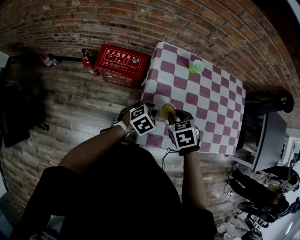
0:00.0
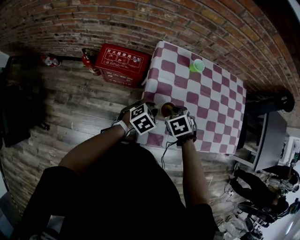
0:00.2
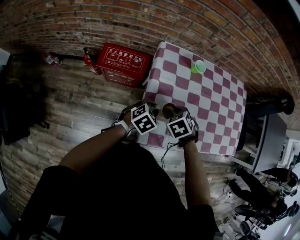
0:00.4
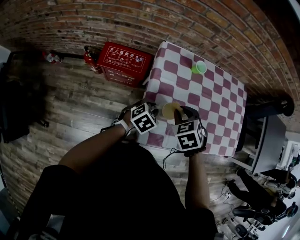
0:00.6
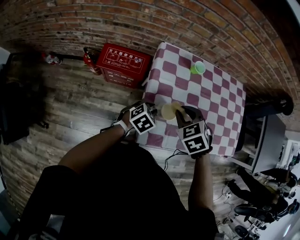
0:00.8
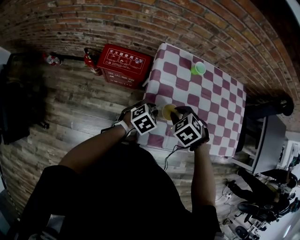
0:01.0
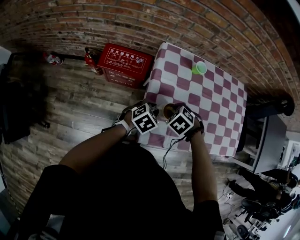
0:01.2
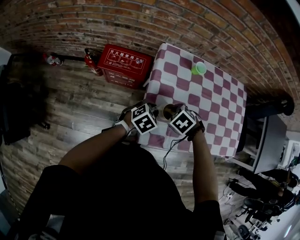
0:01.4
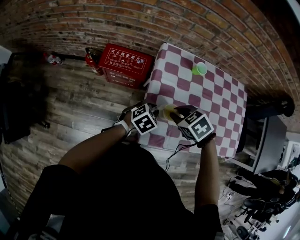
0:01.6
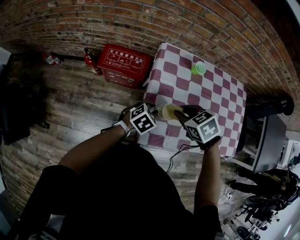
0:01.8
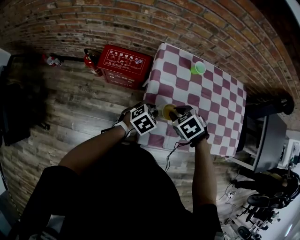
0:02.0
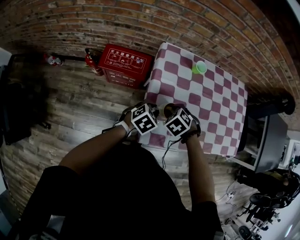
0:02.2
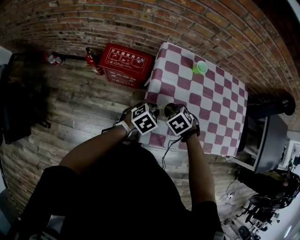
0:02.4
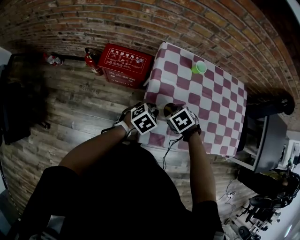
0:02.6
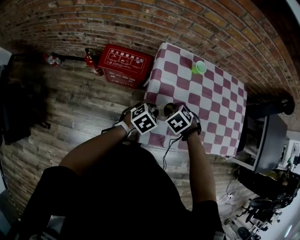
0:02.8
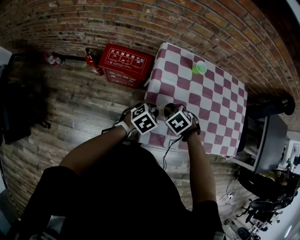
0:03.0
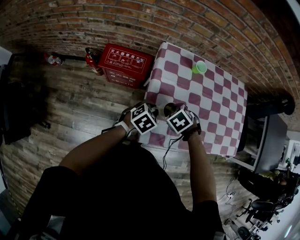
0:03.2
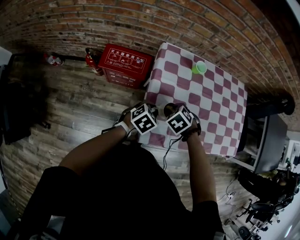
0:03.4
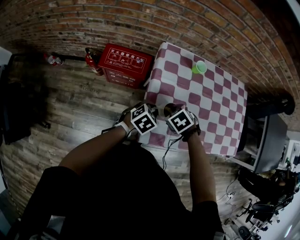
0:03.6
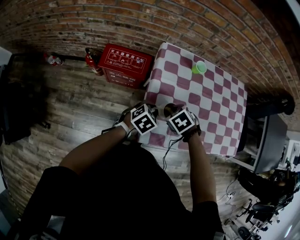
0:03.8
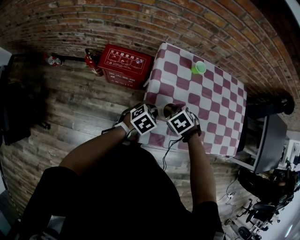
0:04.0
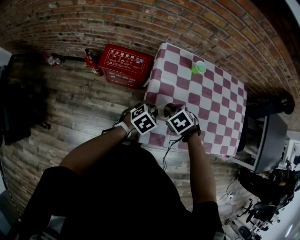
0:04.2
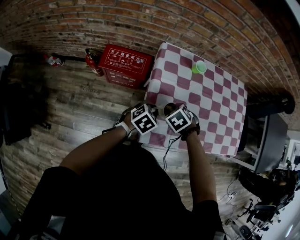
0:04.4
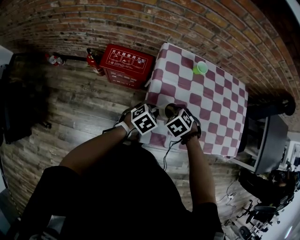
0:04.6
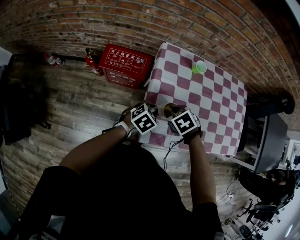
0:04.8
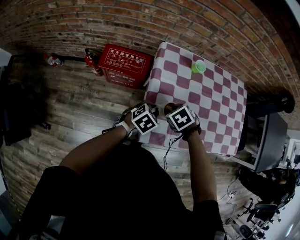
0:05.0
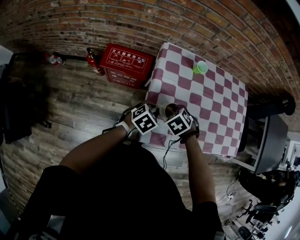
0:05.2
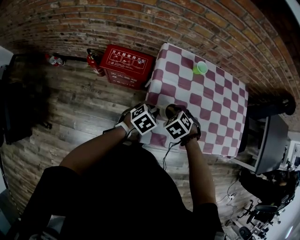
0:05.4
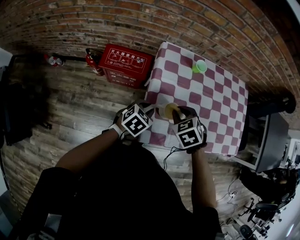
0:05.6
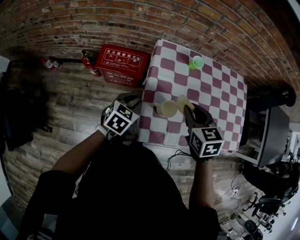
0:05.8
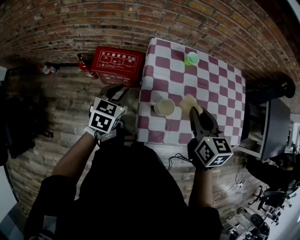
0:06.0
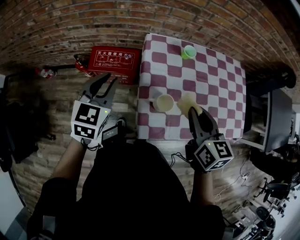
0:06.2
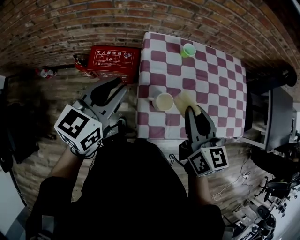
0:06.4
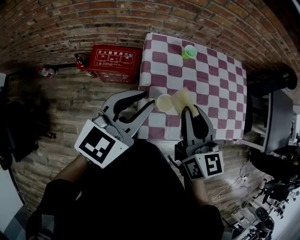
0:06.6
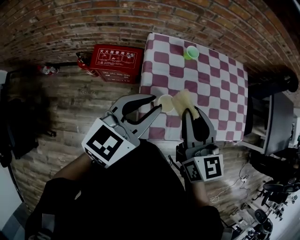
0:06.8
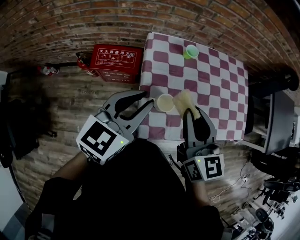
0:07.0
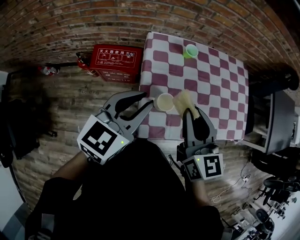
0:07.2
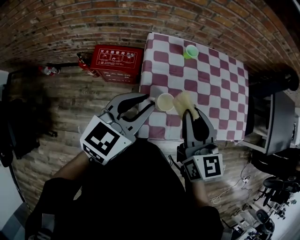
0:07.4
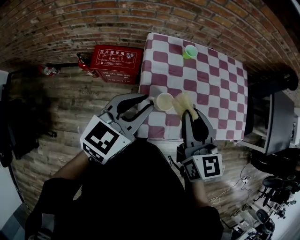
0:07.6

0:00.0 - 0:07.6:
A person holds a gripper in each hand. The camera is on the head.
0:00.0 - 0:01.6: The right gripper swings up and down, some 10 cm each way, with 3 reversals, and changes its angle by approximately 20 degrees.
0:01.6 - 0:03.0: The right gripper is displaced downward by about 10 cm.
0:03.0 - 0:04.6: The grippers move only a little.
0:04.6 - 0:06.0: The right gripper is displaced upward by about 20 cm, and angles its fingers upward, by about 40 degrees, while the left gripper ends up approximately 15 cm from where it was, and changes its angle by approximately 30 degrees.
0:06.0 - 0:07.6: The left gripper shifts about 20 cm upward and to the right, and changes its angle by about 20 degrees. Meanwhile the right gripper is displaced upward by about 5 cm.

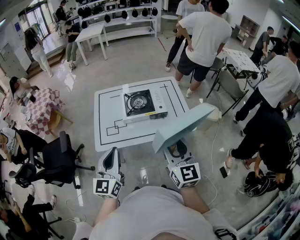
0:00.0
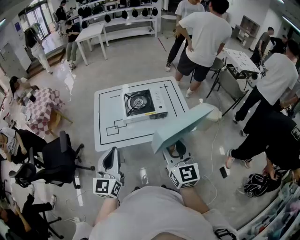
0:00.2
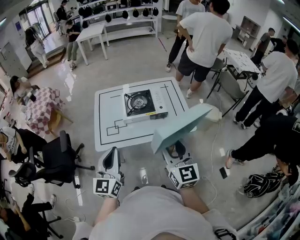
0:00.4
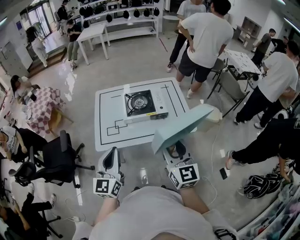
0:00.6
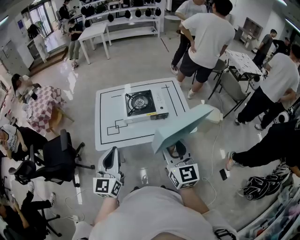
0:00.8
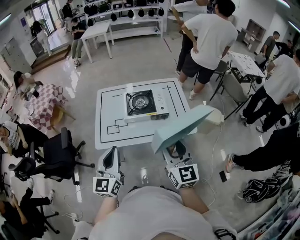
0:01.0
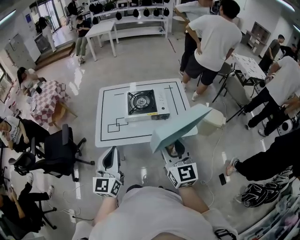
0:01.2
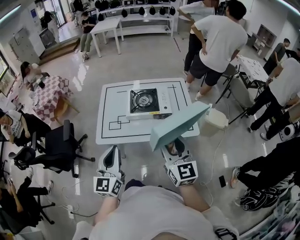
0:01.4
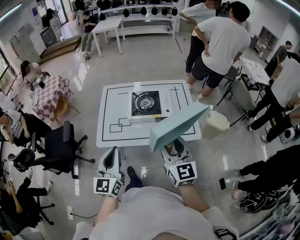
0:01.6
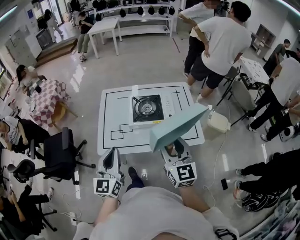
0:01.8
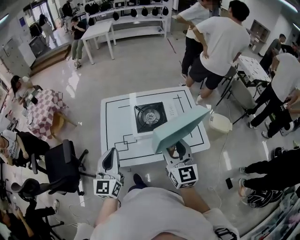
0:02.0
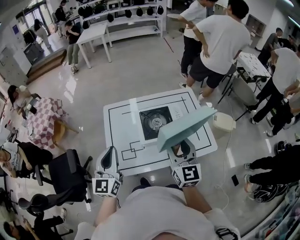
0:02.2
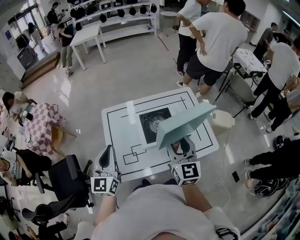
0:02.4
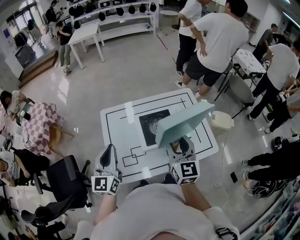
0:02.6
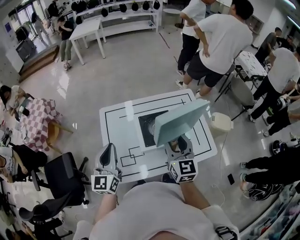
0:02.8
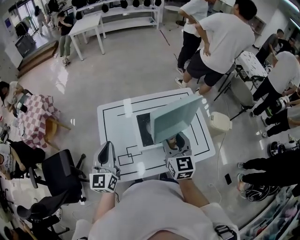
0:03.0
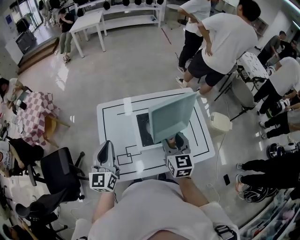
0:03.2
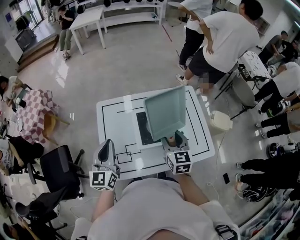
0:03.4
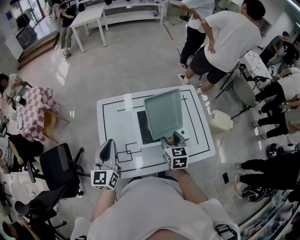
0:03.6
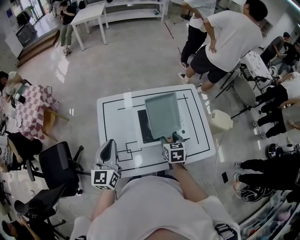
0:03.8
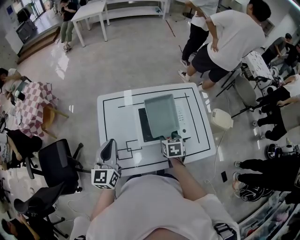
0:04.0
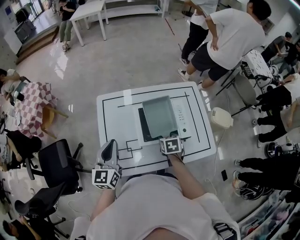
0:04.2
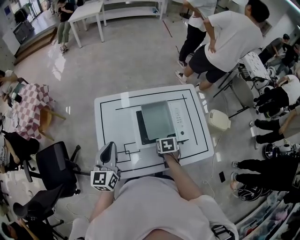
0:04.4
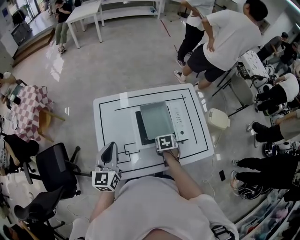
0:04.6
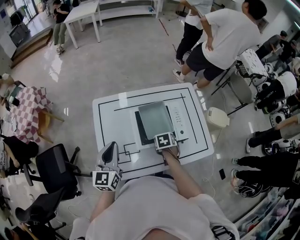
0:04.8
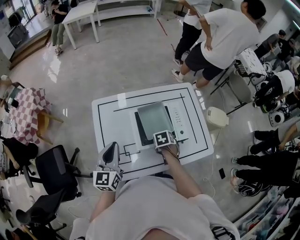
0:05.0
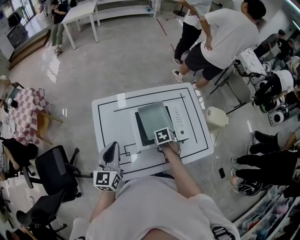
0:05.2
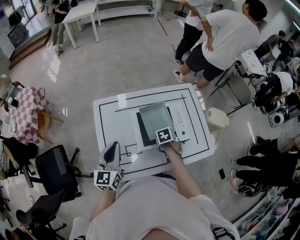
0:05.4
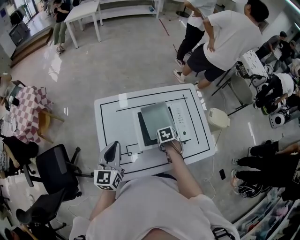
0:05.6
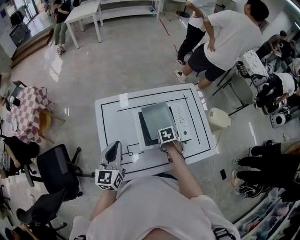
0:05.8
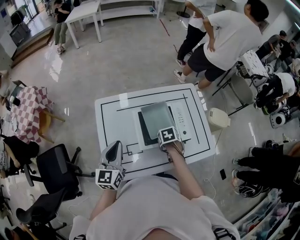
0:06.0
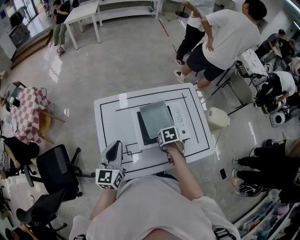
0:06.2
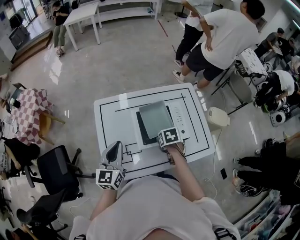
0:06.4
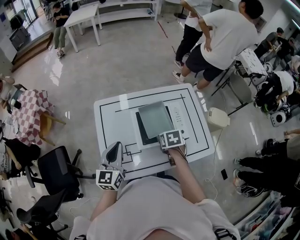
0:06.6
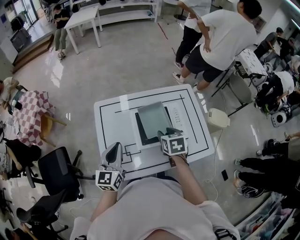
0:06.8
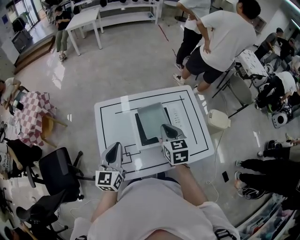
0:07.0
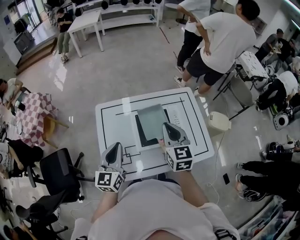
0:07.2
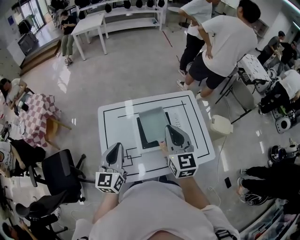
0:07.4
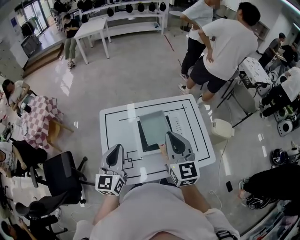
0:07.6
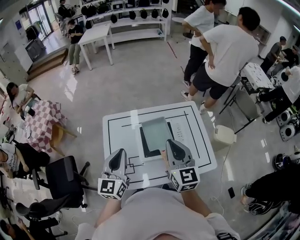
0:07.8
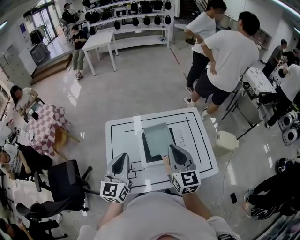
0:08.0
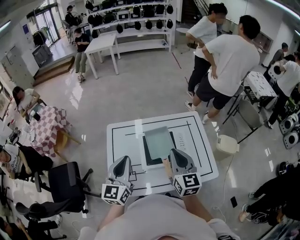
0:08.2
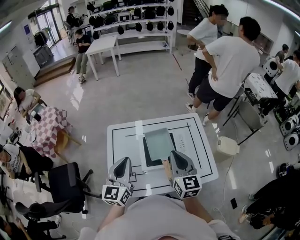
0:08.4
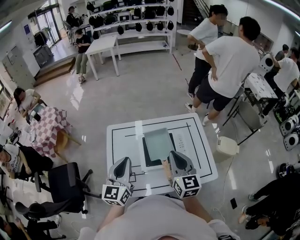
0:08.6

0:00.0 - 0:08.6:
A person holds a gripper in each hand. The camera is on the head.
0:00.0 - 0:01.4: The grippers make only small movements.
0:01.4 - 0:02.8: The right gripper moves forward, roughly 25 cm. The left gripper goes some 35 cm forward and to the left.
0:02.8 - 0:04.4: The right gripper shifts about 25 cm downward, and points its fingers approximately 60 degrees further downward; the left gripper goes approximately 5 cm downward.
0:04.4 - 0:05.8: The grippers move only a little.
0:05.8 - 0:07.2: The left gripper ends up about 5 cm from where it was; the right gripper heads upward, covering roughly 25 cm, points its fingers roughly 60 degrees further upward, and closes up.
0:07.2 - 0:08.6: The left gripper heads upward, covering roughly 5 cm, while the right gripper ends up some 5 cm from where it was.

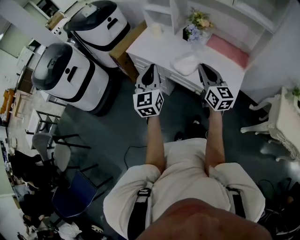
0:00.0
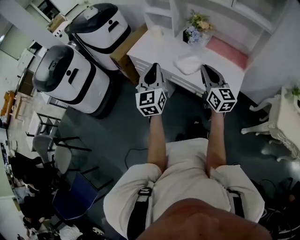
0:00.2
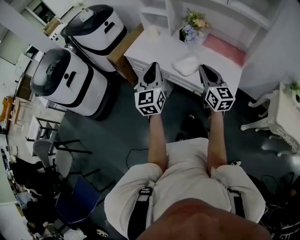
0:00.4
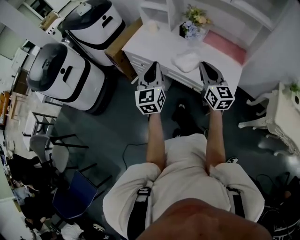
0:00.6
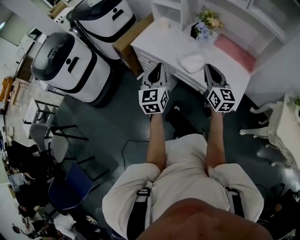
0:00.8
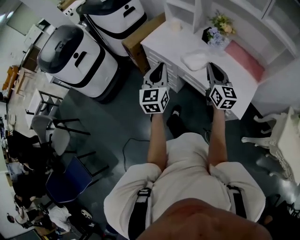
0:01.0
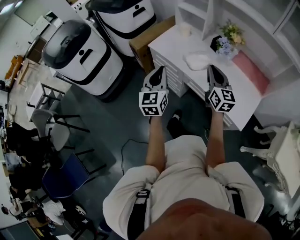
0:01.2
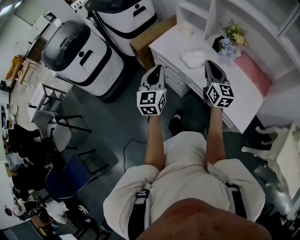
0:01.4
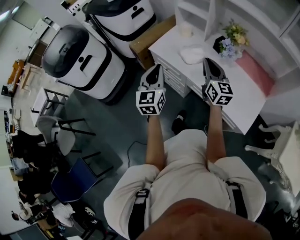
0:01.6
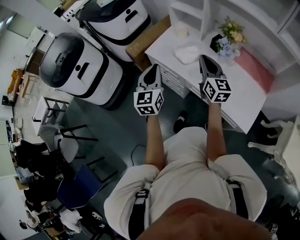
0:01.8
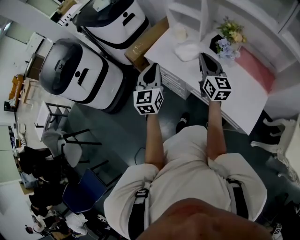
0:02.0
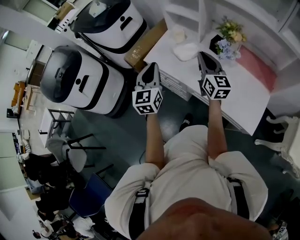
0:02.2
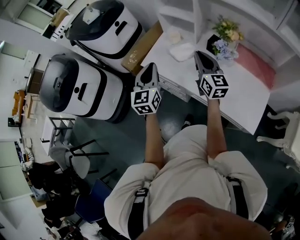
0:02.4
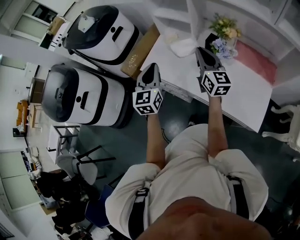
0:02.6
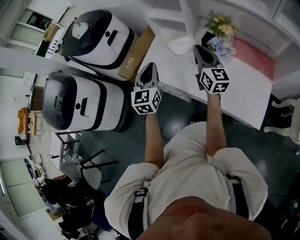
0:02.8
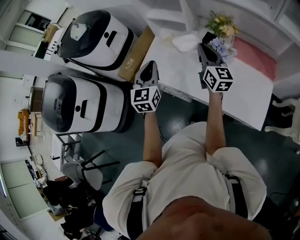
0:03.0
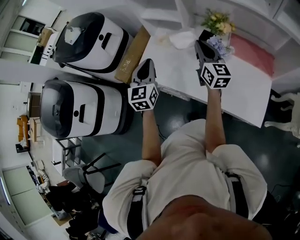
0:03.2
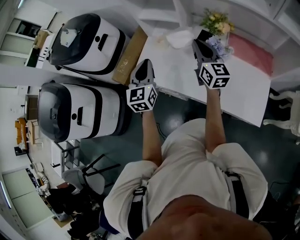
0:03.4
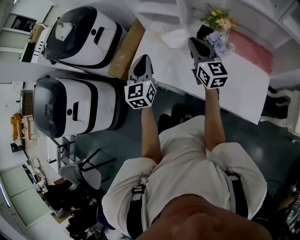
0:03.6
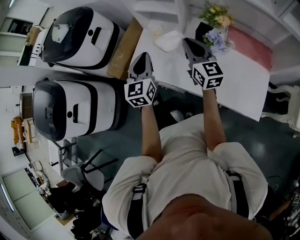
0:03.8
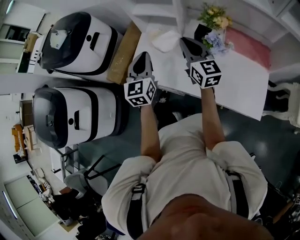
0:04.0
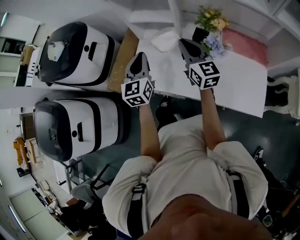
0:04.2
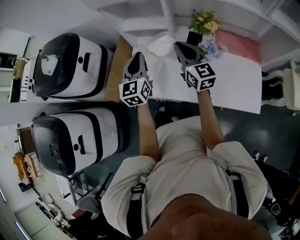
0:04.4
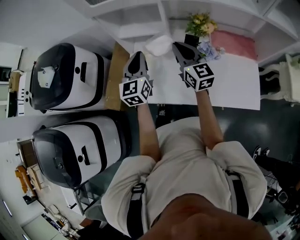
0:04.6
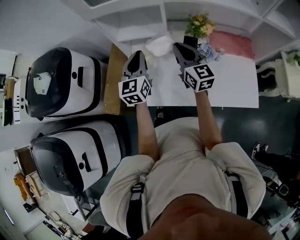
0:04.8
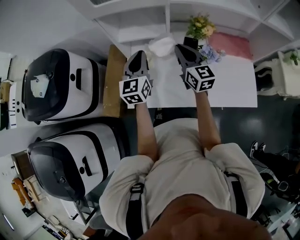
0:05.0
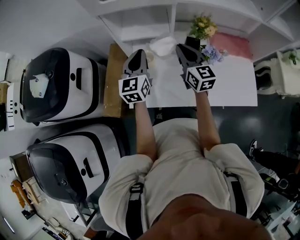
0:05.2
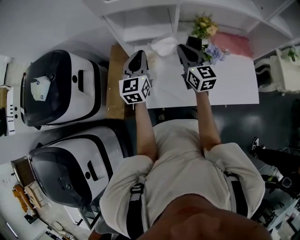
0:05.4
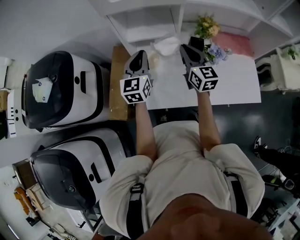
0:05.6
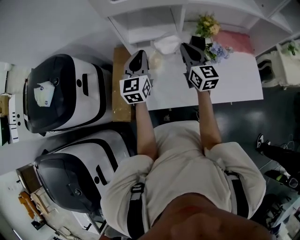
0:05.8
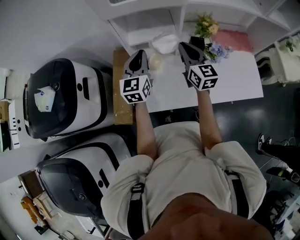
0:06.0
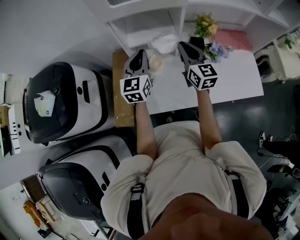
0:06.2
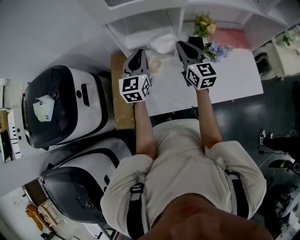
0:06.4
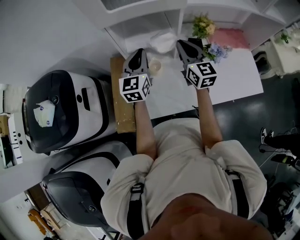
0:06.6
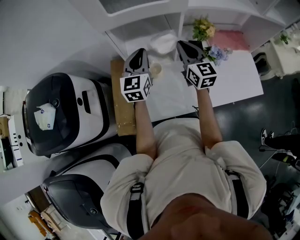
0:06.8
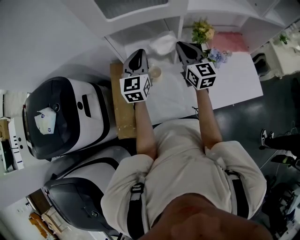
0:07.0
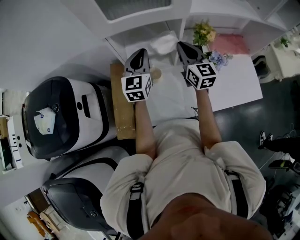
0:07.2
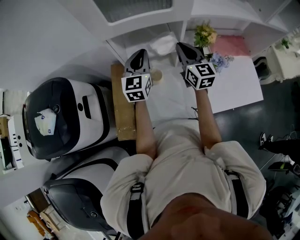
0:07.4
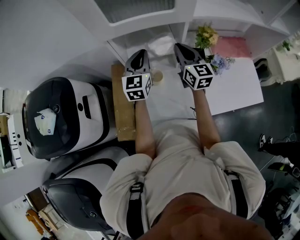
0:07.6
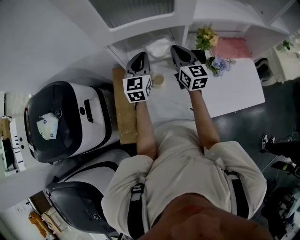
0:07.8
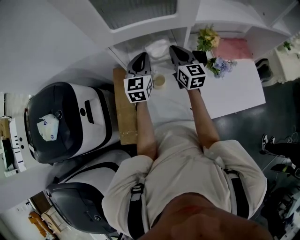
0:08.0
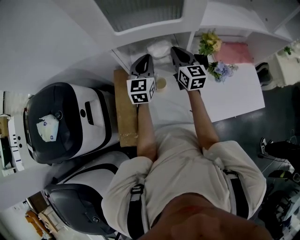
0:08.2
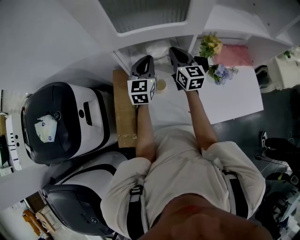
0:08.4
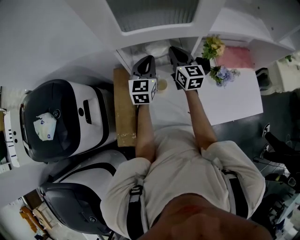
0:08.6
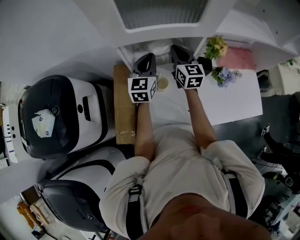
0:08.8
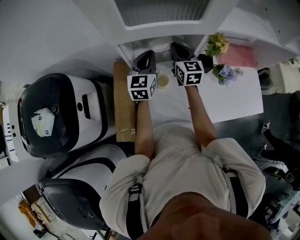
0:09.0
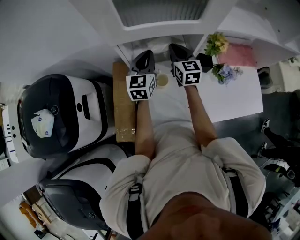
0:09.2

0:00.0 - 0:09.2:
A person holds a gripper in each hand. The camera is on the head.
0:00.0 - 0:01.6: Both grippers travel together forward and to the left, some 20 cm.
0:01.6 - 0:03.0: The grippers both shift forward by some 20 cm.
0:03.0 - 0:04.6: The left gripper moves forward, some 20 cm. Meanwhile the right gripper travels forward and to the left by roughly 10 cm.
0:04.6 - 0:06.2: The right gripper goes approximately 5 cm to the left, while the left gripper heads to the left and forward, covering roughly 10 cm.
0:06.2 - 0:07.6: Both grippers move forward, roughly 10 cm.
0:07.6 - 0:09.2: The left gripper shifts by roughly 5 cm; the right gripper goes about 10 cm forward, downward and to the left.
